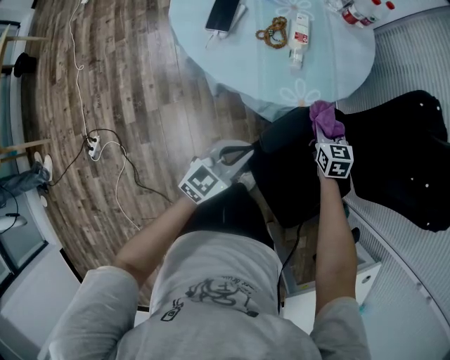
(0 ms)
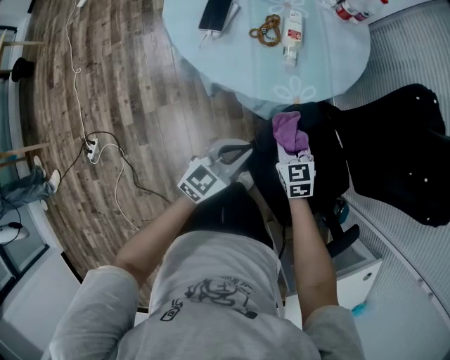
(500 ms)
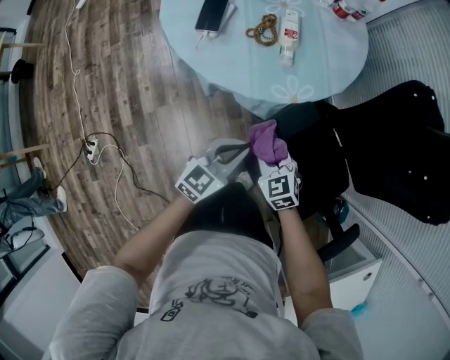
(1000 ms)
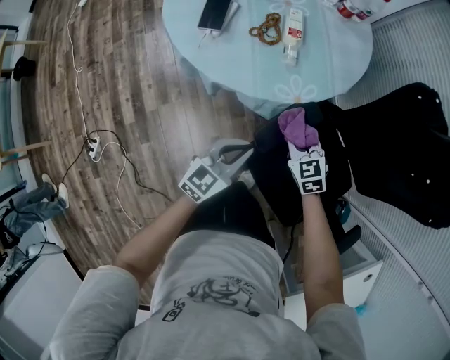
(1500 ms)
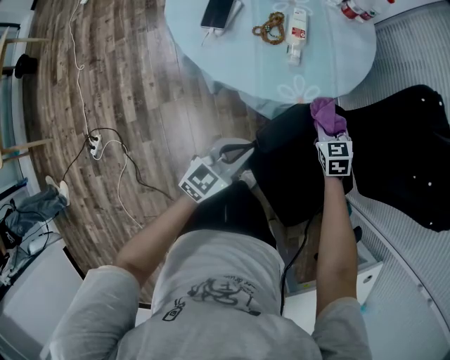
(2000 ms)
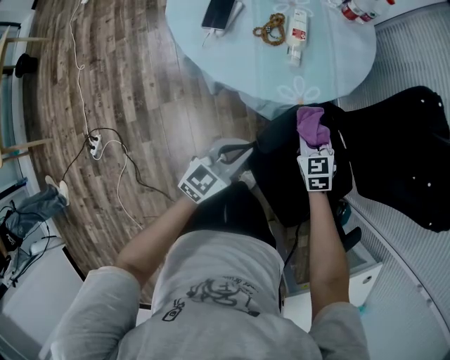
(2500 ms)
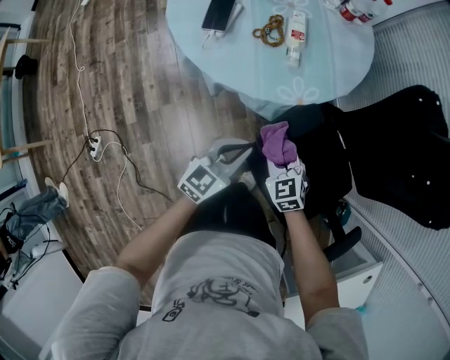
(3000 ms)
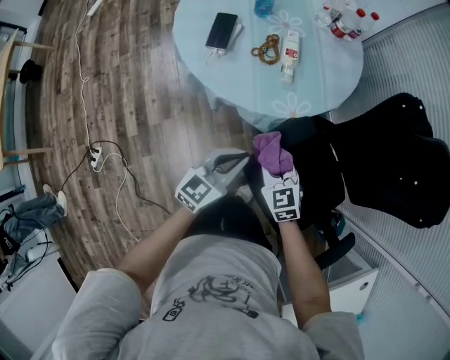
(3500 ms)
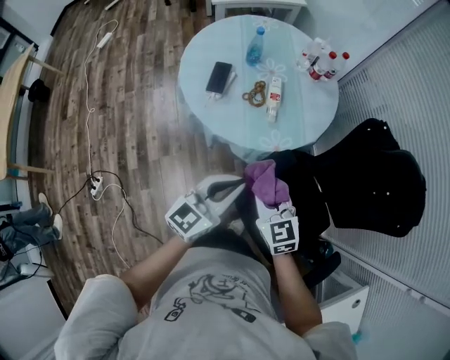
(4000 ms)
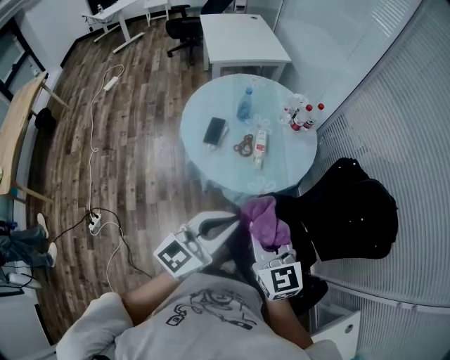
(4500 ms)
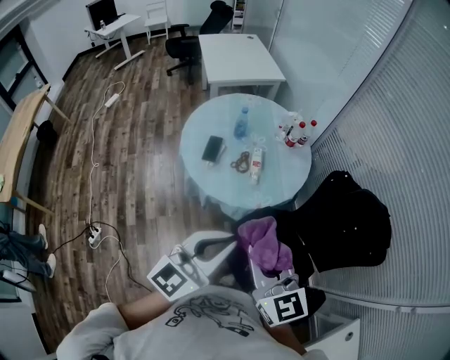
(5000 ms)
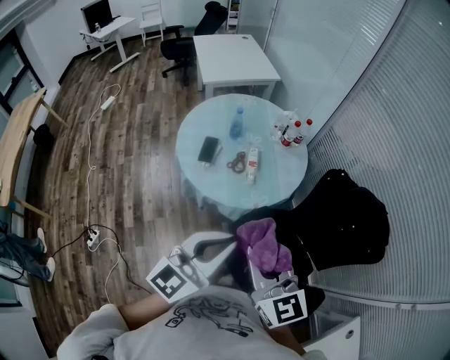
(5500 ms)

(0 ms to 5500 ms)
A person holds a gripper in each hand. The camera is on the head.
0 ms - 2000 ms: The right gripper moves approximately 15 cm backward and comes back.
2000 ms - 3500 ms: The left gripper shifts some 5 cm upward, while the right gripper heads backward, to the left and upward, covering approximately 20 cm.
3500 ms - 5500 ms: Both grippers travel together upward, about 40 cm. The left gripper rotates some 20 degrees, while the right gripper swivels about 30 degrees.

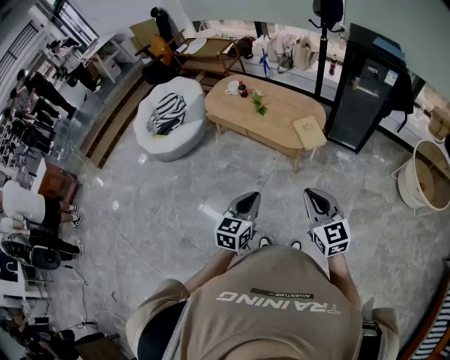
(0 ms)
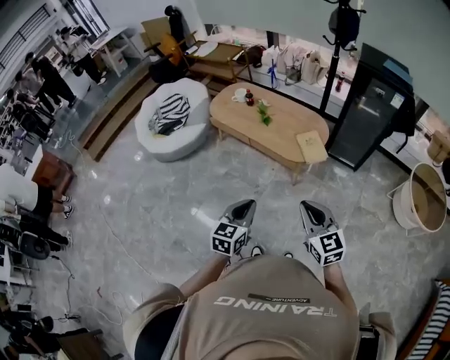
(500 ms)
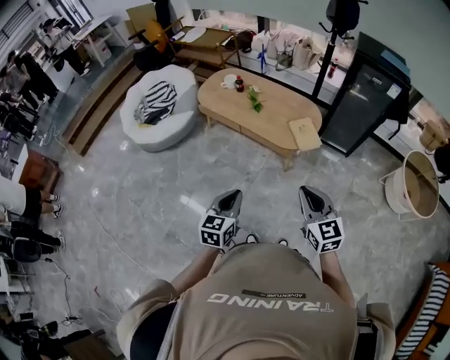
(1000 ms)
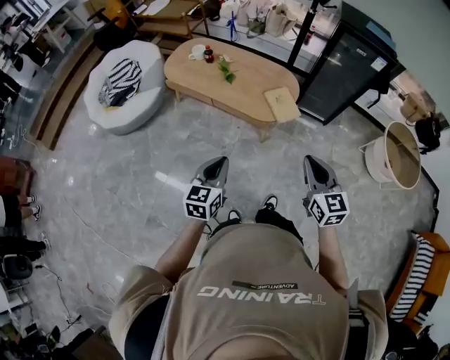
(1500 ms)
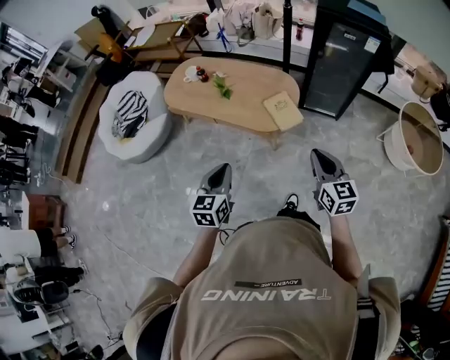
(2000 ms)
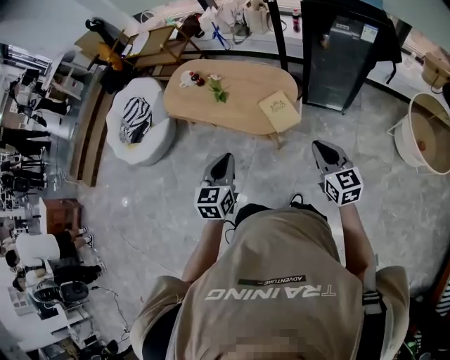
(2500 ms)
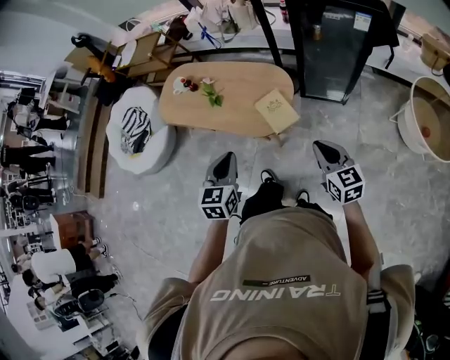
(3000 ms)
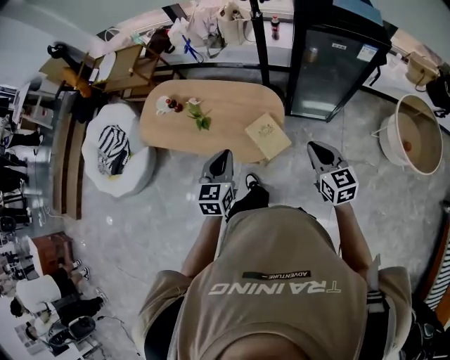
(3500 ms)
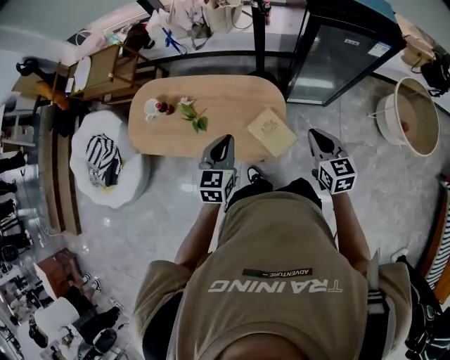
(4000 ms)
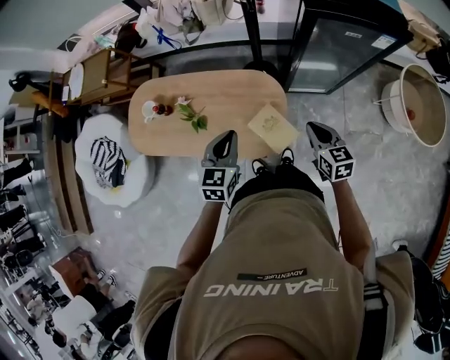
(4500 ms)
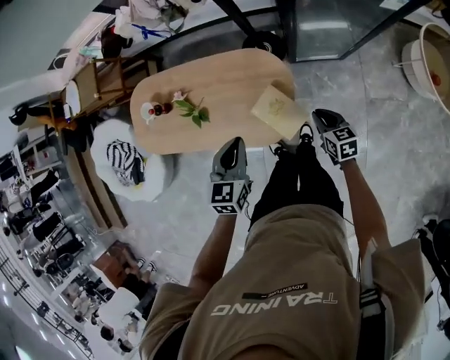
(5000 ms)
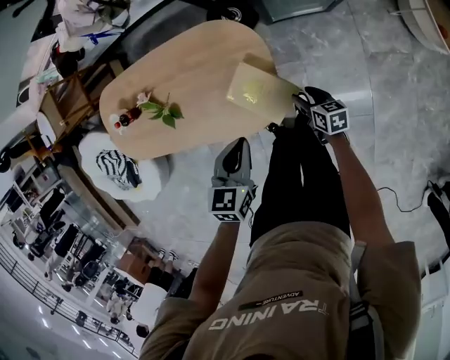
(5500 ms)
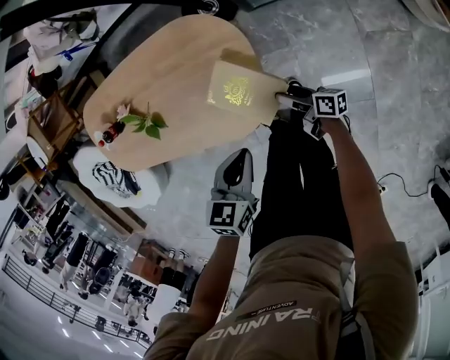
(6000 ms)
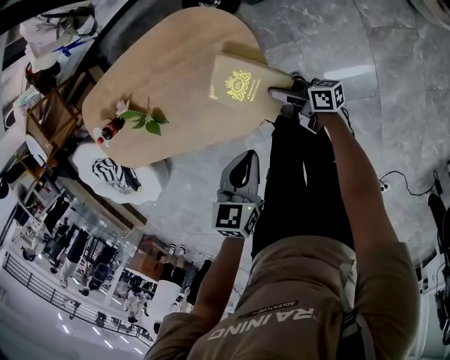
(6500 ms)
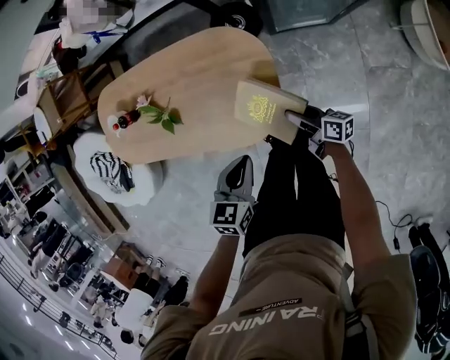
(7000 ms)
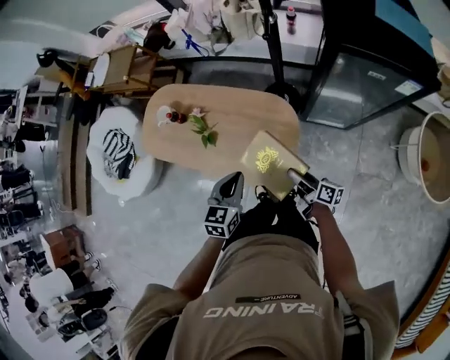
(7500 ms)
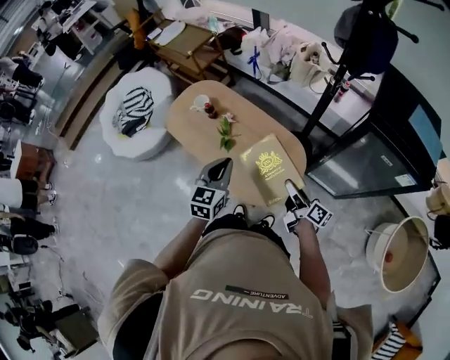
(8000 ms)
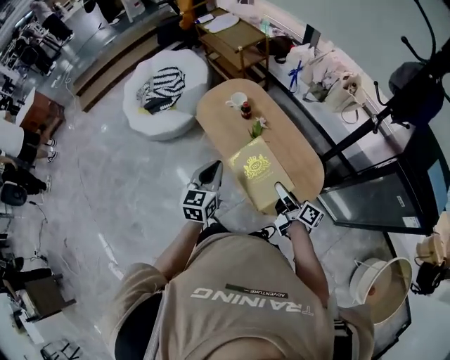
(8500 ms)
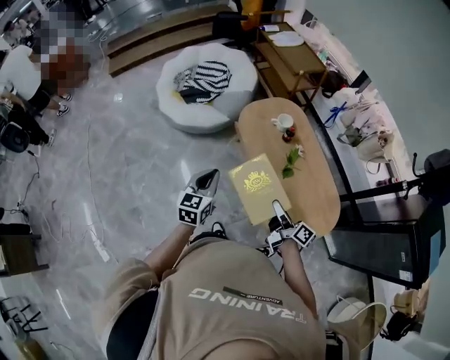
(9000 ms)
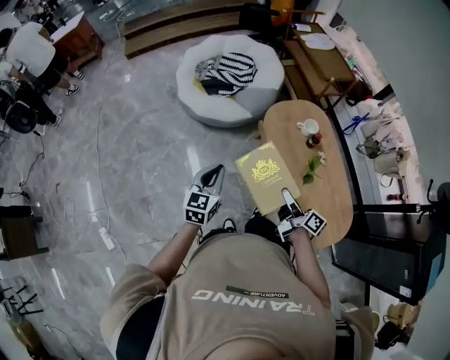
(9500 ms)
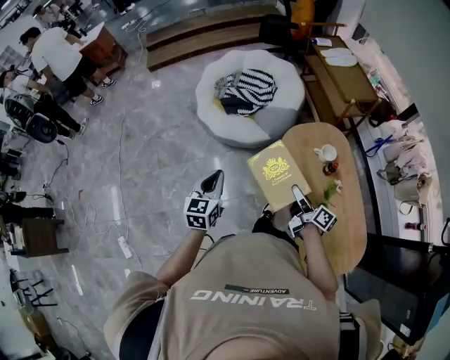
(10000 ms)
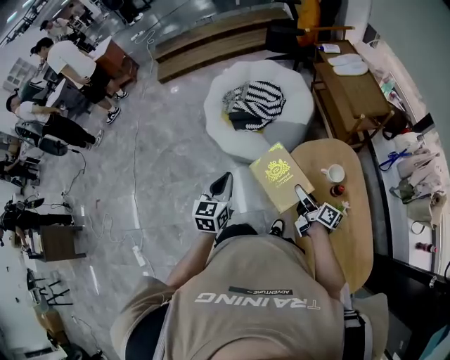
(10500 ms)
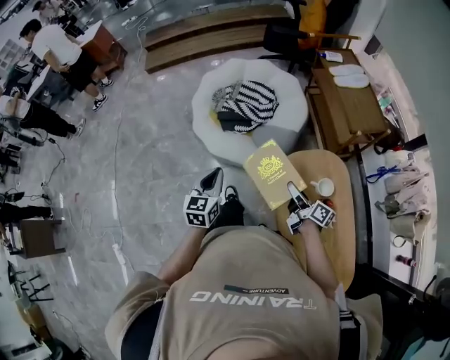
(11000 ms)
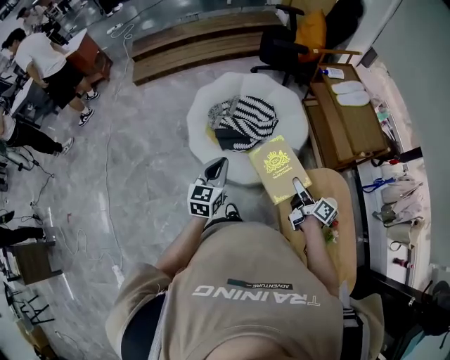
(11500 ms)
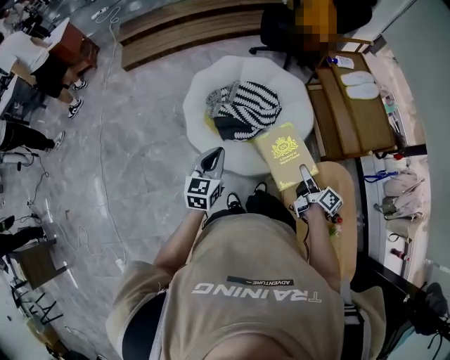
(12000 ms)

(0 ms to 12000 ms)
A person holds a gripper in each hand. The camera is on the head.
0 ms - 2000 ms: The left gripper moves forward, roughly 15 cm. The right gripper is displaced forward and to the right by approximately 20 cm, and turns by some 20 degrees.
2000 ms - 4000 ms: Both grippers travel together forward, some 35 cm.
4000 ms - 6000 ms: The right gripper travels downward by some 50 cm, twists approximately 60 degrees clockwise, seen from behind, and opens up; the left gripper travels downward and to the right by approximately 30 cm, and rotates some 30 degrees.
6000 ms - 8000 ms: Both grippers move upward, roughly 35 cm. The right gripper rotates about 30 degrees. The left gripper swivels approximately 50 degrees.
8000 ms - 10000 ms: Both grippers are carried about 60 cm. The left gripper turns by some 50 degrees, while the right gripper rotates roughly 40 degrees.
10000 ms - 12000 ms: The grippers both shift forward by approximately 40 cm.

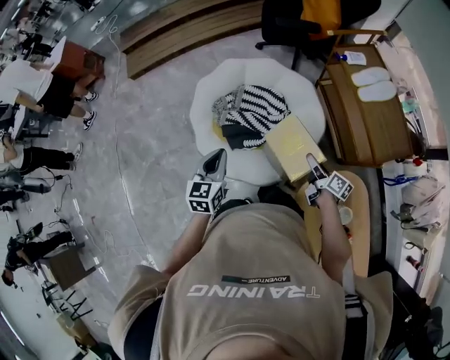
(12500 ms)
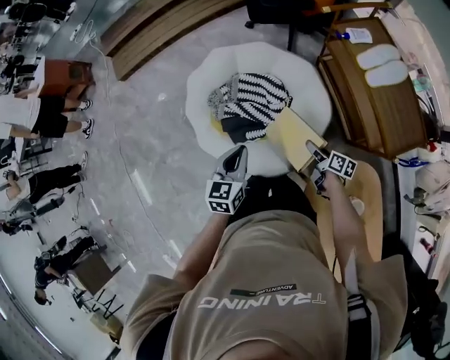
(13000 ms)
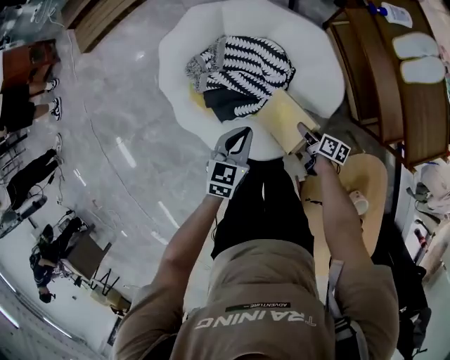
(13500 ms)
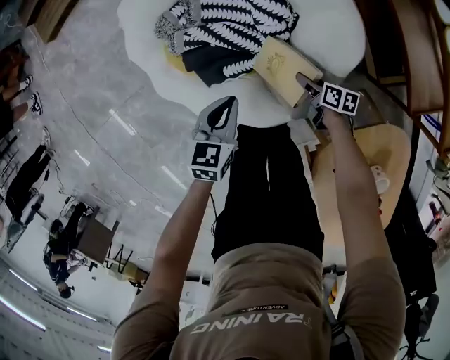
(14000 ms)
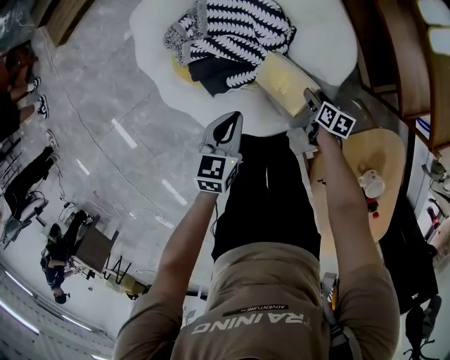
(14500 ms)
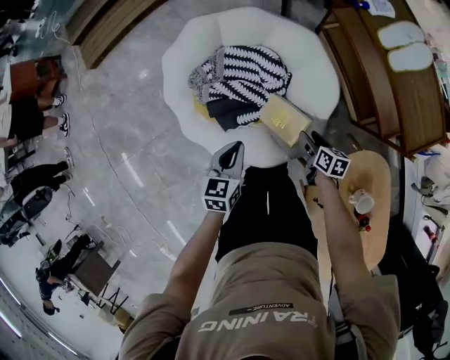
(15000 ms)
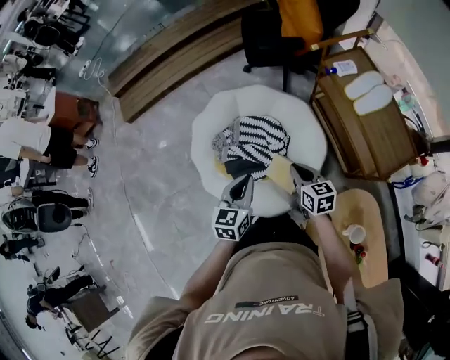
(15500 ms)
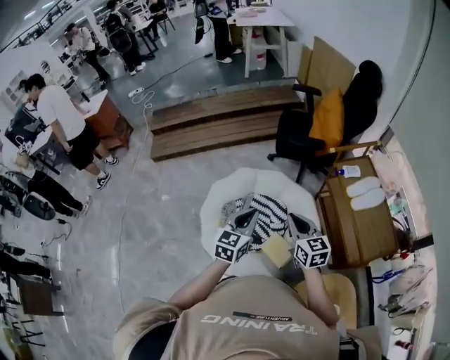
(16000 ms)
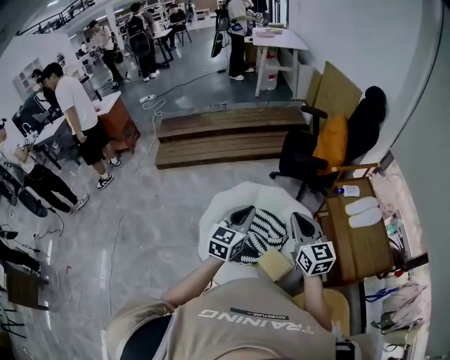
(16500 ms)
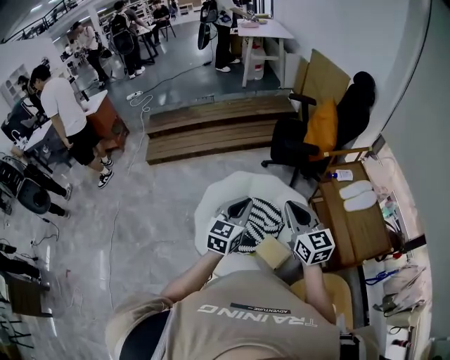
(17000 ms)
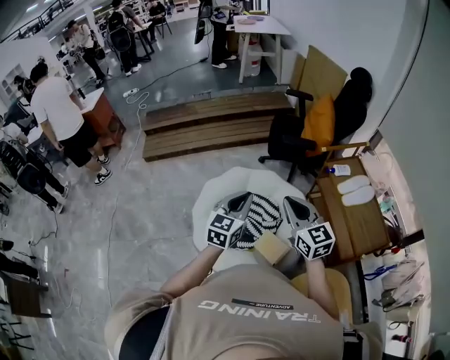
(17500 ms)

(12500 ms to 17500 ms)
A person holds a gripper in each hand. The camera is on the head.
12500 ms - 15000 ms: The two grippers go some 20 cm downward. The right gripper turns by some 30 degrees.
15000 ms - 17500 ms: The right gripper moves upward, roughly 50 cm, twists some 60 degrees counterclockwise, seen from behind, and closes up; the left gripper goes about 35 cm upward, and changes its angle by approximately 30 degrees.

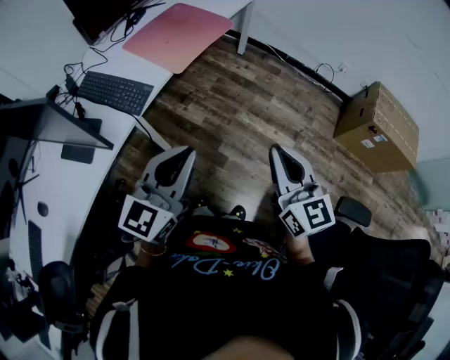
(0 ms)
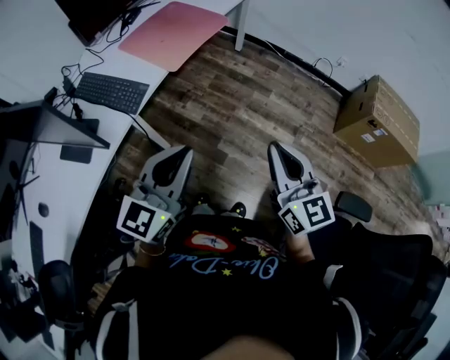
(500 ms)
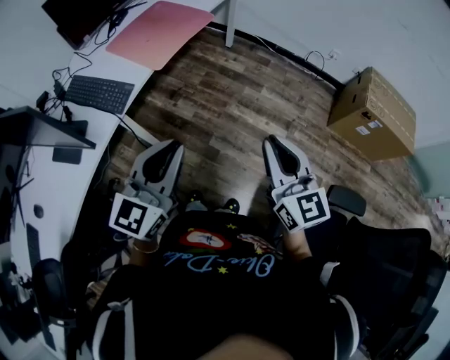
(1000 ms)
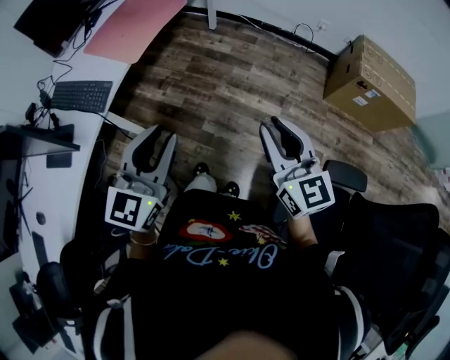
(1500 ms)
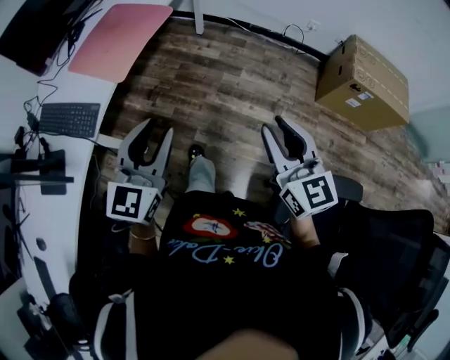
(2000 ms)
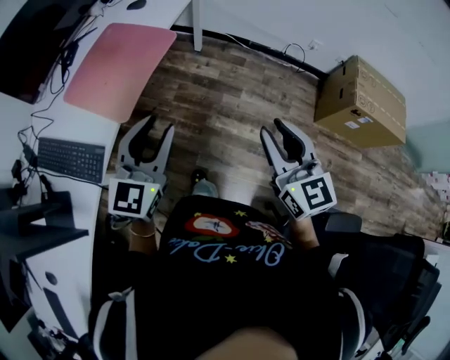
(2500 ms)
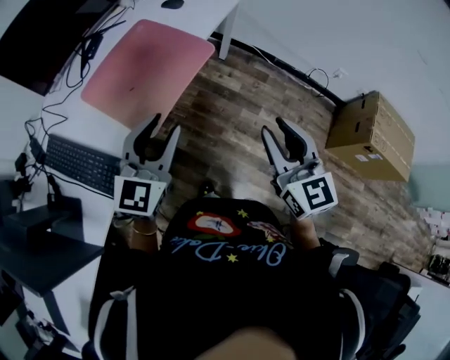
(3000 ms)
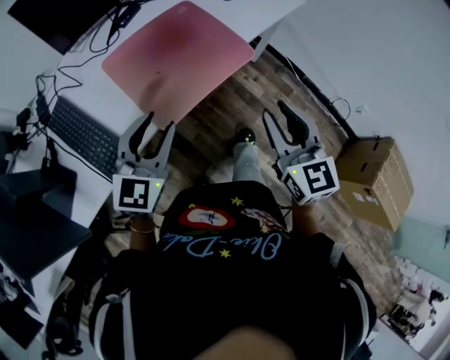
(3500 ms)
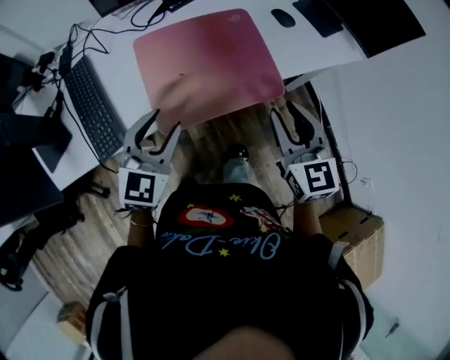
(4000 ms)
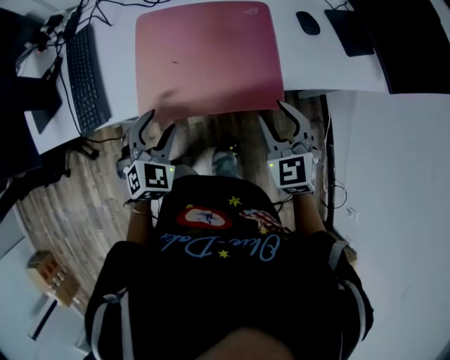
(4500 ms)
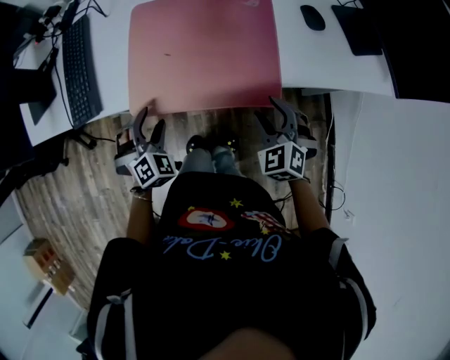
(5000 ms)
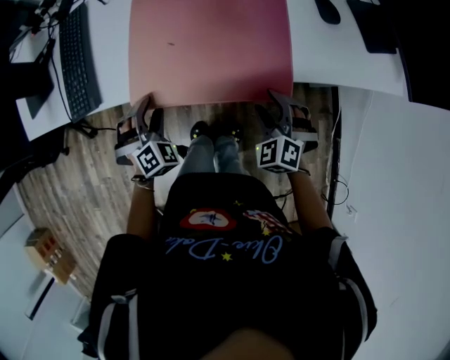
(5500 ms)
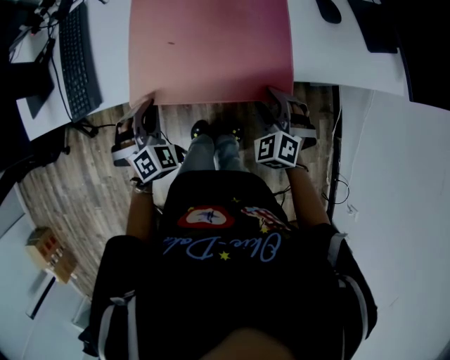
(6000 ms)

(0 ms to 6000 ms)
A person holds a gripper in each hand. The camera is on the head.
0 ms - 2000 ms: The right gripper goes roughly 15 cm to the right and forward, and opens, while the left gripper heads forward and to the right, covering about 15 cm, and opens.
2000 ms - 4000 ms: The right gripper moves about 60 cm, and changes its angle by about 40 degrees. Meanwhile the left gripper changes place by some 40 cm, and turns by approximately 50 degrees.
4000 ms - 6000 ms: The two grippers go roughly 20 cm downward. The left gripper turns by about 50 degrees, and closes its fingers, while the right gripper rotates around the line of its fingers by roughly 50 degrees, counterclockwise from behind, and opens up.
